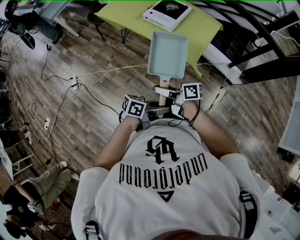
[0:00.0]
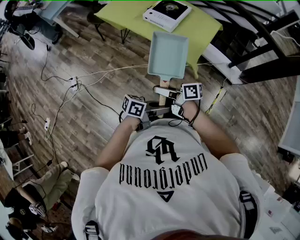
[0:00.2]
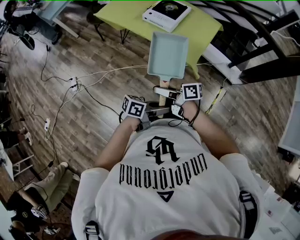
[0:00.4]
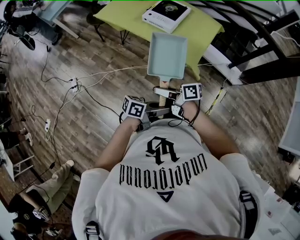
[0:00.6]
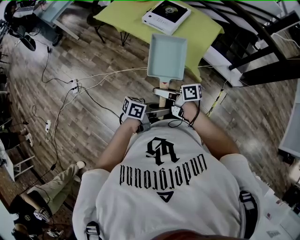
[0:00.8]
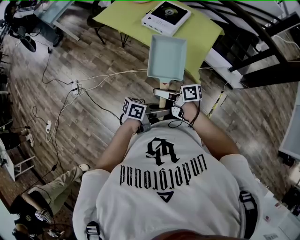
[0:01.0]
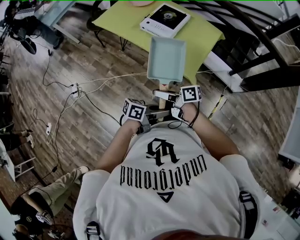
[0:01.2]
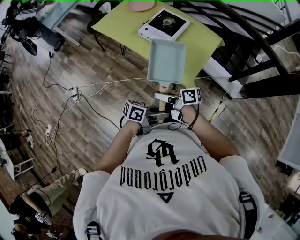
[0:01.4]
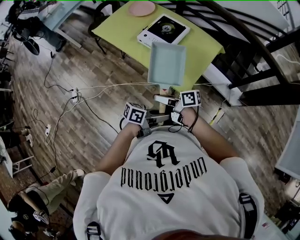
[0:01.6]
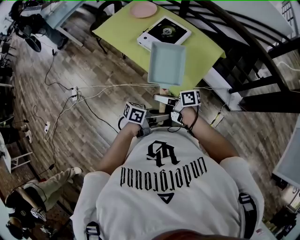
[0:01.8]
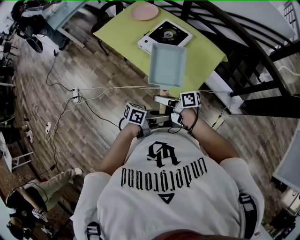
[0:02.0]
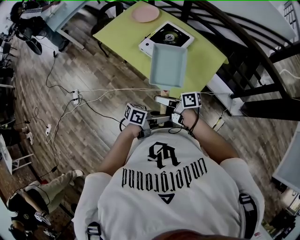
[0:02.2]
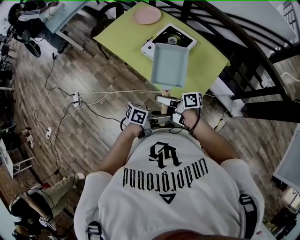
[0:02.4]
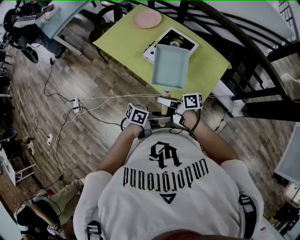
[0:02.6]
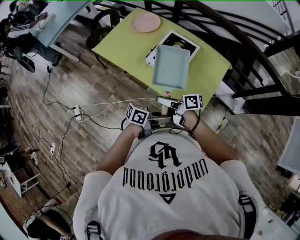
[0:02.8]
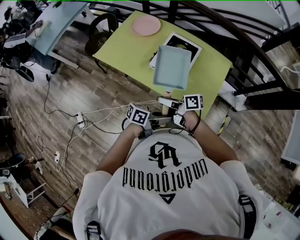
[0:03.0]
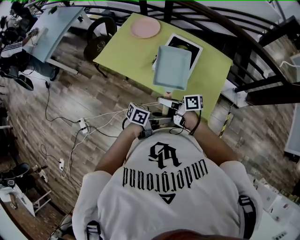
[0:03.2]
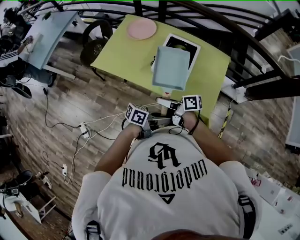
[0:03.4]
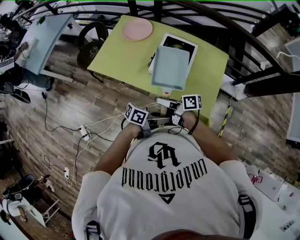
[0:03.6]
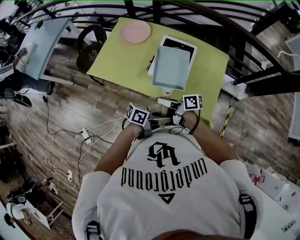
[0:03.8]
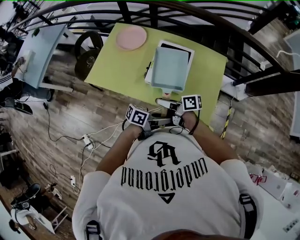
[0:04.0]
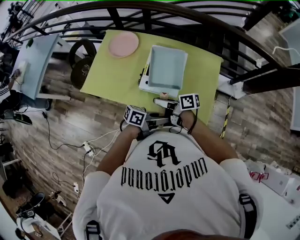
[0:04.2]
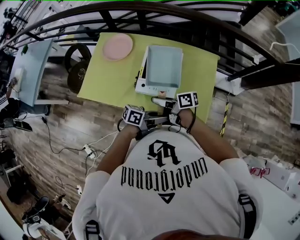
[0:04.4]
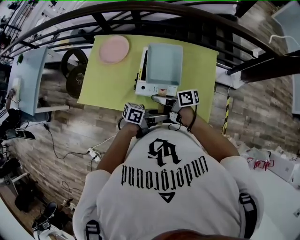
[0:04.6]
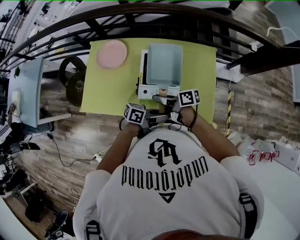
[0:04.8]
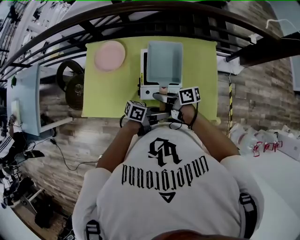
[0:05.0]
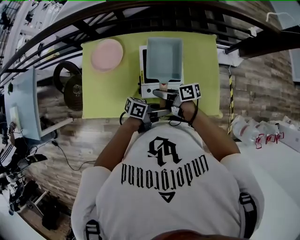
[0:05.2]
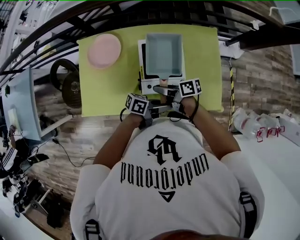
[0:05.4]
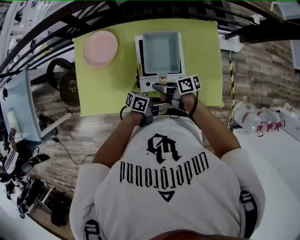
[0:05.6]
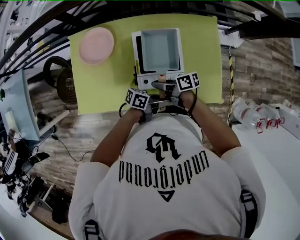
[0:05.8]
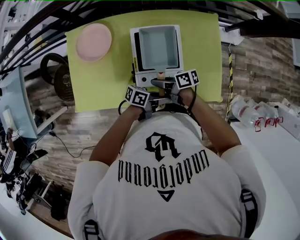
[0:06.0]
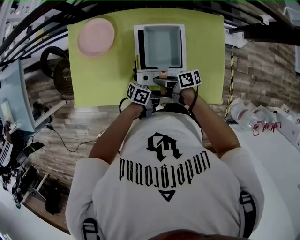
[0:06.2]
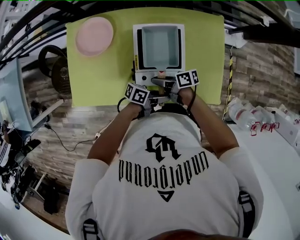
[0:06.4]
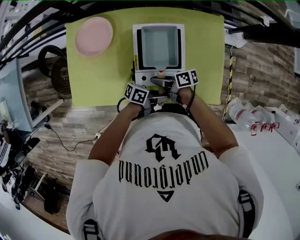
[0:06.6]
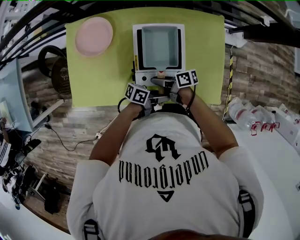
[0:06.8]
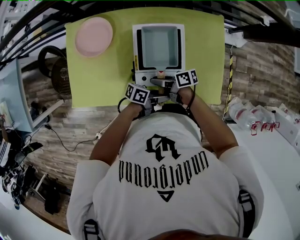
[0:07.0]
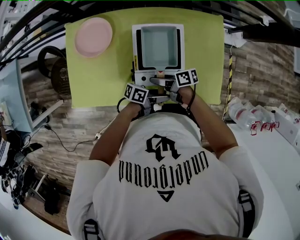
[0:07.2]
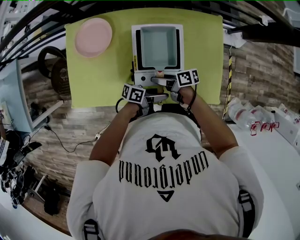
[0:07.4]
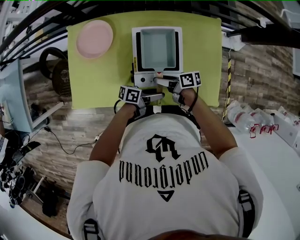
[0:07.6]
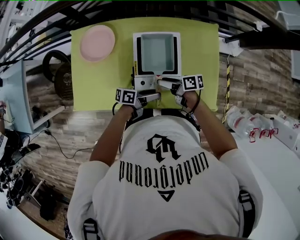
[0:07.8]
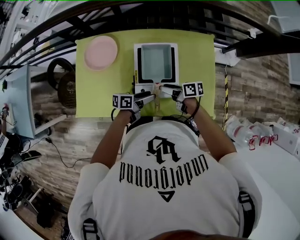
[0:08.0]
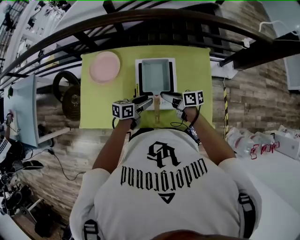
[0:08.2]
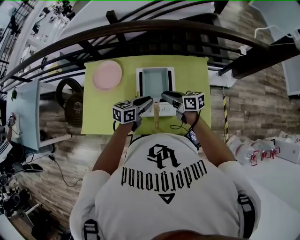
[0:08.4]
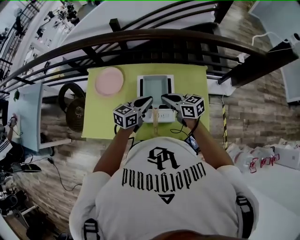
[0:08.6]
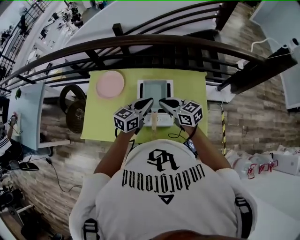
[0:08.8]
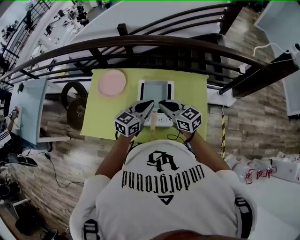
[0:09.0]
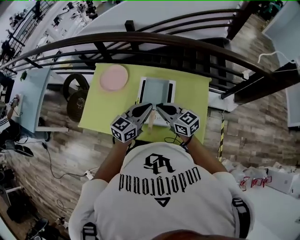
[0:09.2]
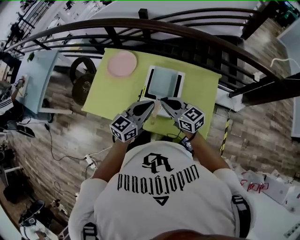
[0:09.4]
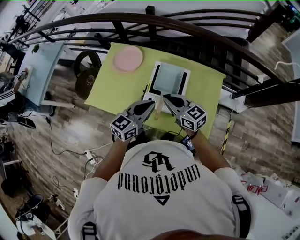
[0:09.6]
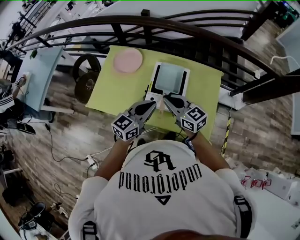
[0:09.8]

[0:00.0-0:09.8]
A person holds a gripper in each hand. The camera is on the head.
0:00.0 to 0:01.4: The left gripper ends up approximately 15 cm from where it was. Meanwhile the right gripper changes place by some 15 cm.
0:01.4 to 0:02.8: The left gripper ends up about 25 cm from where it was, while the right gripper ends up roughly 25 cm from where it was.
0:02.8 to 0:04.2: The left gripper shifts by some 15 cm; the right gripper shifts by approximately 15 cm.
0:04.2 to 0:05.6: The right gripper changes place by about 20 cm, while the left gripper ends up roughly 15 cm from where it was, and changes its angle by about 20 degrees.
0:05.6 to 0:07.0: The grippers both shift downward by roughly 5 cm.
0:07.0 to 0:08.4: The two grippers go approximately 15 cm upward. The left gripper turns by roughly 50 degrees, and opens, then closes once more. The right gripper changes its angle by roughly 30 degrees, and opens, then closes once more.
0:08.4 to 0:09.8: The right gripper goes roughly 20 cm backward, upward and to the left, and rotates about 40 degrees, while the left gripper travels backward and upward by about 20 cm, and changes its angle by about 30 degrees.

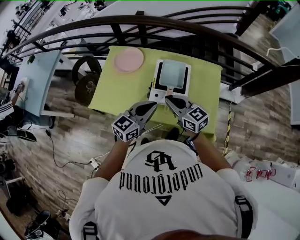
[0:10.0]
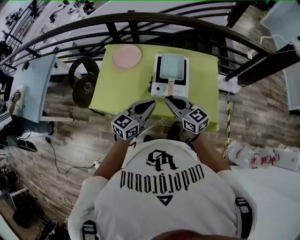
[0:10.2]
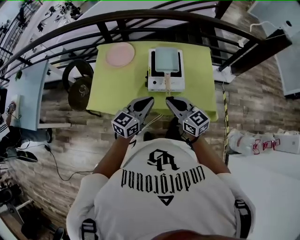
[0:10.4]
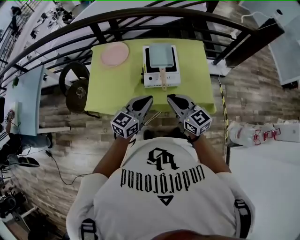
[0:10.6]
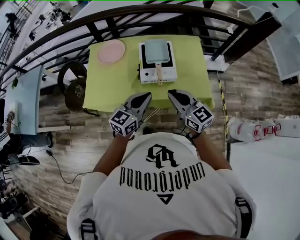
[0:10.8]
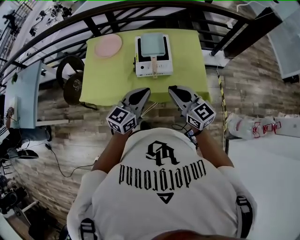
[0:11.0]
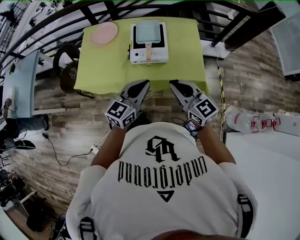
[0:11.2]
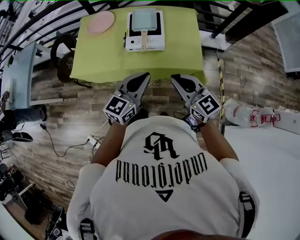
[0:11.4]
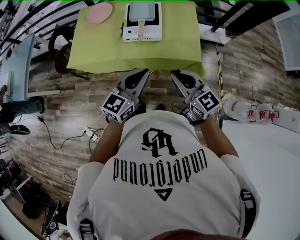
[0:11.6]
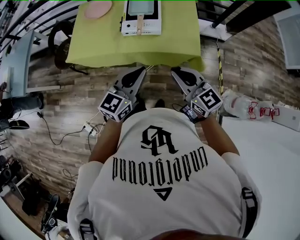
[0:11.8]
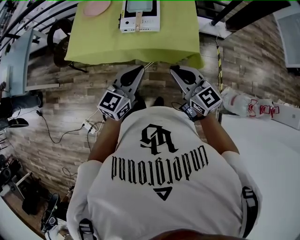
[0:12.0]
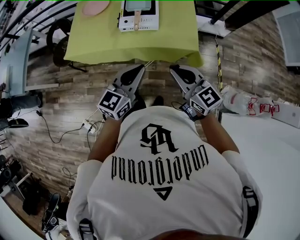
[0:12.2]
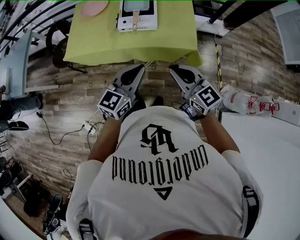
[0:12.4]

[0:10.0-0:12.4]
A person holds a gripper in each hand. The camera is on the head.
0:10.0 to 0:11.2: The left gripper moves backward, approximately 15 cm. The right gripper moves backward and to the right, approximately 25 cm.
0:11.2 to 0:12.4: Both grippers travel together backward and to the right, roughly 15 cm.

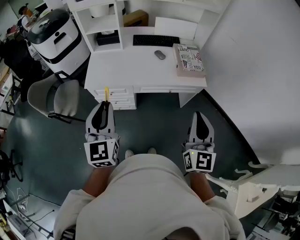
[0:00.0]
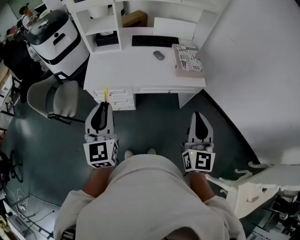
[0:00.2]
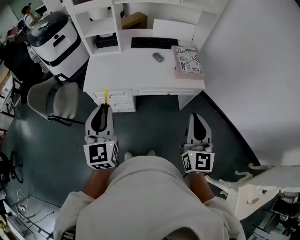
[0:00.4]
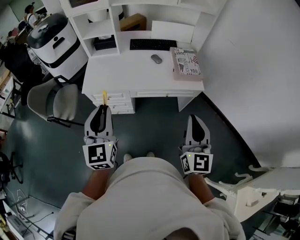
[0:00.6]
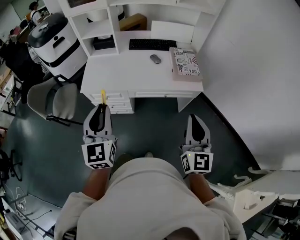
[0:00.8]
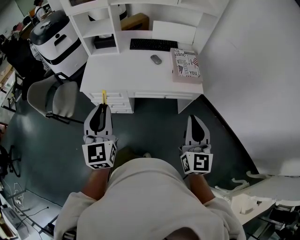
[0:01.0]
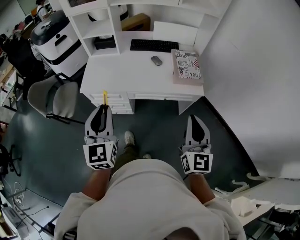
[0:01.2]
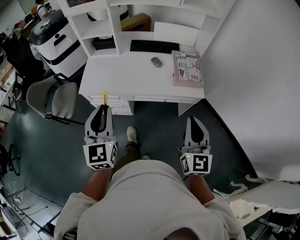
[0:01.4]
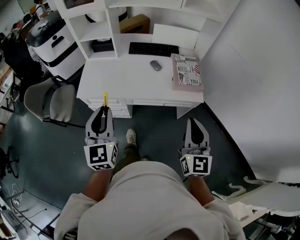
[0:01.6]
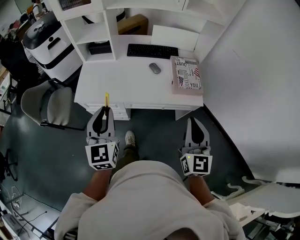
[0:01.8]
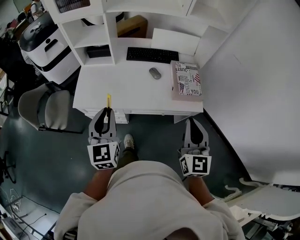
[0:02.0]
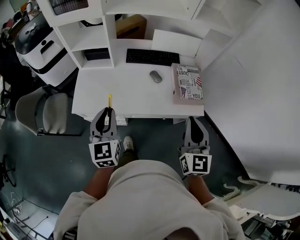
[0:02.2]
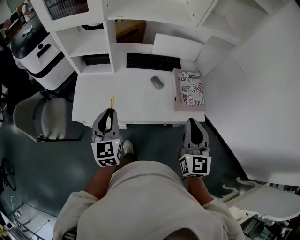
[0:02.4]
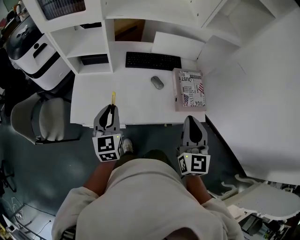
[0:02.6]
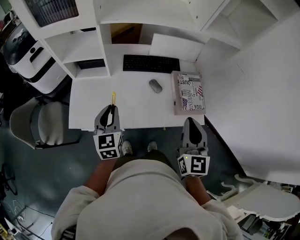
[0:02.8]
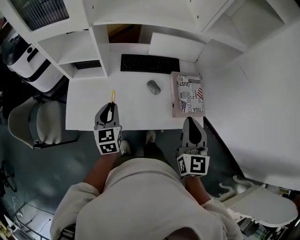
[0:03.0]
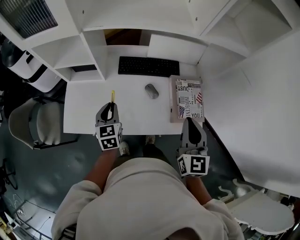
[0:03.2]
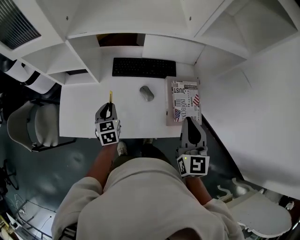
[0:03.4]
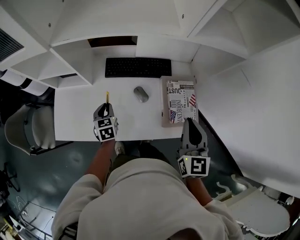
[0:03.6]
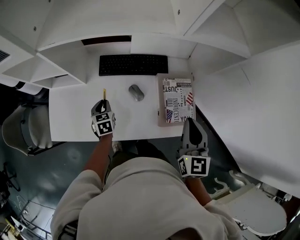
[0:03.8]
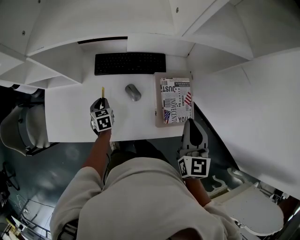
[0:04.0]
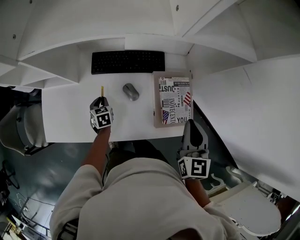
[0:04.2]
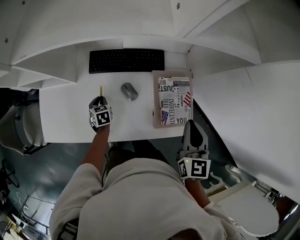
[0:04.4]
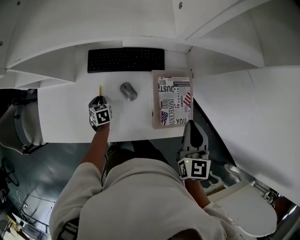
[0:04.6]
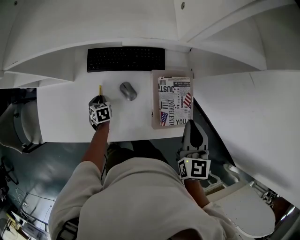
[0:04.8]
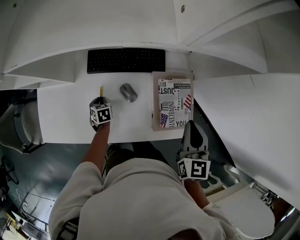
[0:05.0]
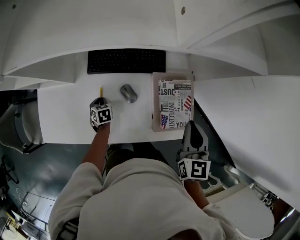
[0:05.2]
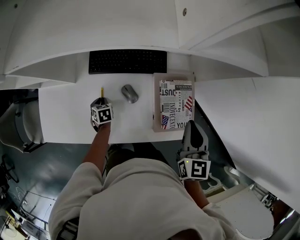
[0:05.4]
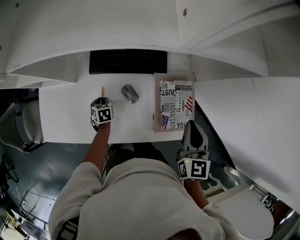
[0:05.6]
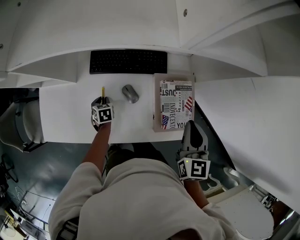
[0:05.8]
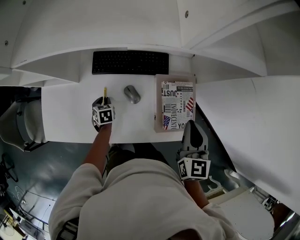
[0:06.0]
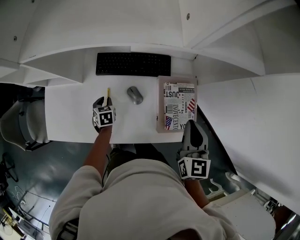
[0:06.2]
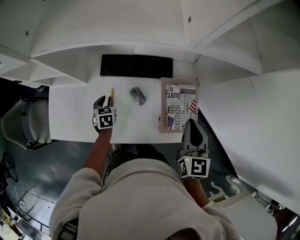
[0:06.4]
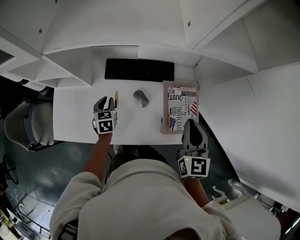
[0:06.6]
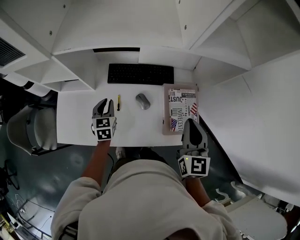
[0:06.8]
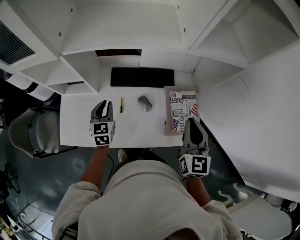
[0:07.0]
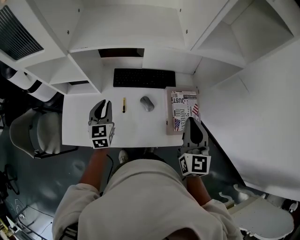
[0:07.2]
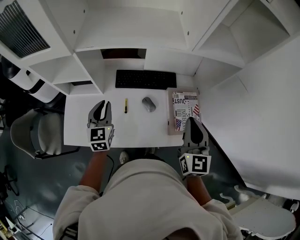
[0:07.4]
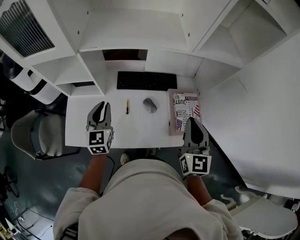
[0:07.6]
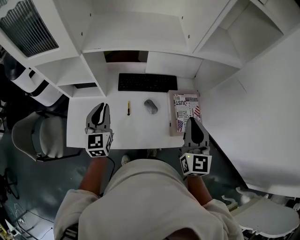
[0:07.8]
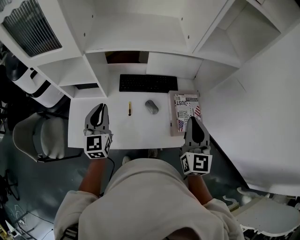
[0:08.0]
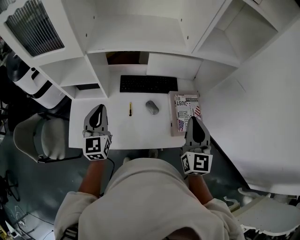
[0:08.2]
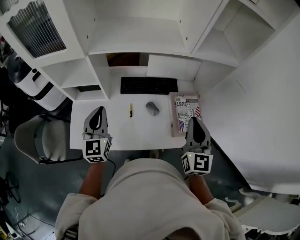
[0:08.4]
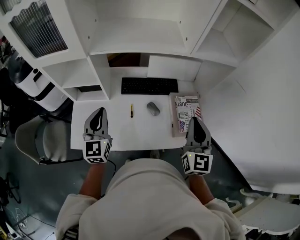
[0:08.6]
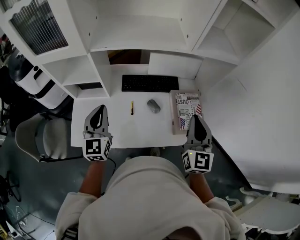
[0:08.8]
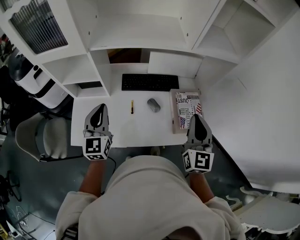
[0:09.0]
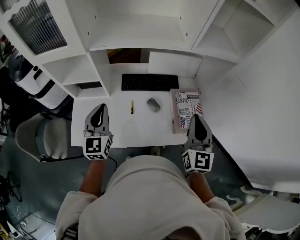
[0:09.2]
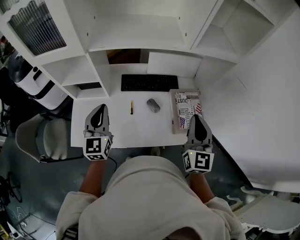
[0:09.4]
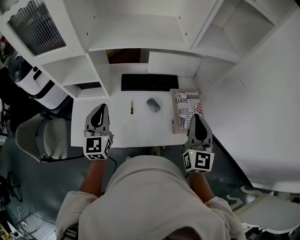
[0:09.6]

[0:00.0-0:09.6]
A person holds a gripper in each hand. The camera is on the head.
0:00.0 to 0:01.6: The grippers both shift forward and to the right by roughly 10 cm.
0:01.6 to 0:03.2: The right gripper travels forward by roughly 35 cm, while the left gripper moves forward and downward, roughly 40 cm, and swivels some 20 degrees.
0:03.2 to 0:04.8: The right gripper travels to the right, forward and downward by about 20 cm; the left gripper moves downward and forward, roughly 30 cm, and points its fingers about 30 degrees further downward.
0:04.8 to 0:06.4: The left gripper travels upward by roughly 10 cm.
0:06.4 to 0:08.0: The left gripper goes roughly 30 cm upward, and tips its fingers upward by about 40 degrees; the right gripper is displaced upward, to the left and backward by some 15 cm.
0:08.0 to 0:09.6: The grippers move only a little.

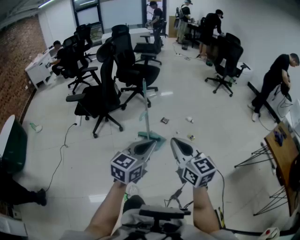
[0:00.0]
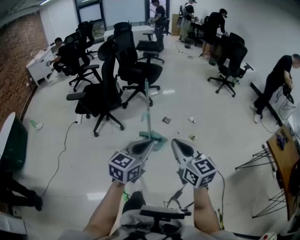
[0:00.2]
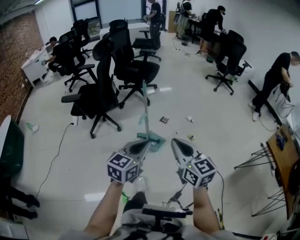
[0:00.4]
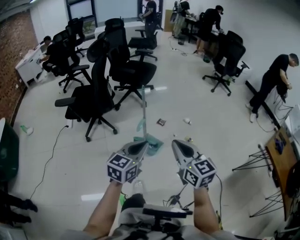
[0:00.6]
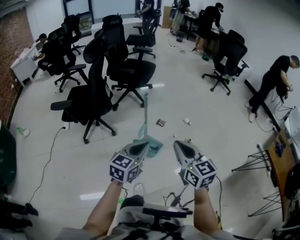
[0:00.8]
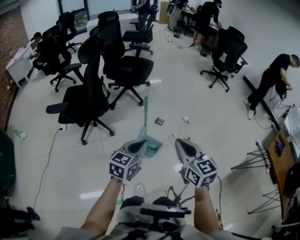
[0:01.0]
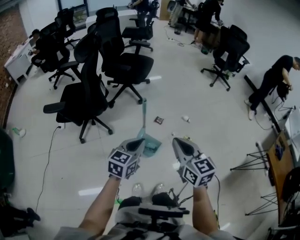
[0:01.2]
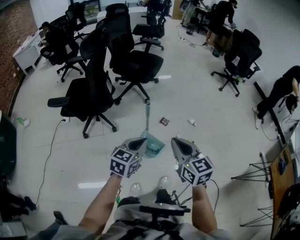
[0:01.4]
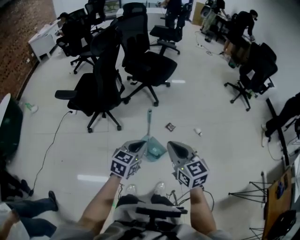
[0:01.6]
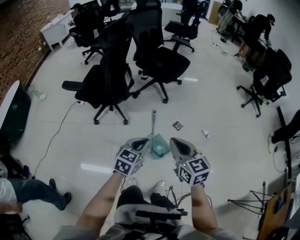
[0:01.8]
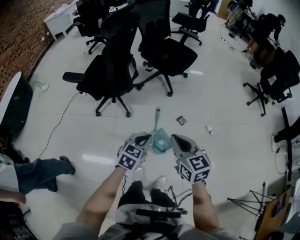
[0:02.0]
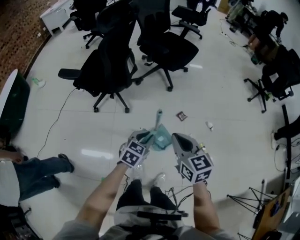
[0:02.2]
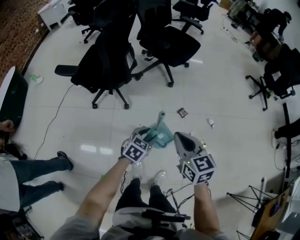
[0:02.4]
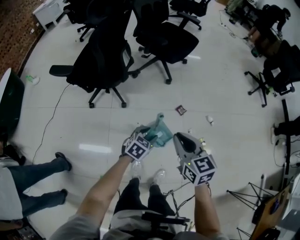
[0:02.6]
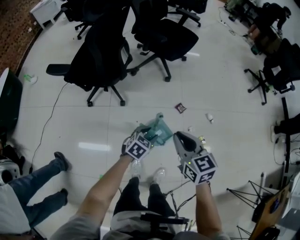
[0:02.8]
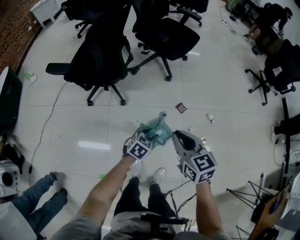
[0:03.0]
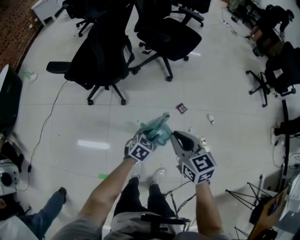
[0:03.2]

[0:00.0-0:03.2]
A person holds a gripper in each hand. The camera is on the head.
0:00.0 to 0:01.6: The two grippers go approximately 35 cm forward.
0:01.6 to 0:03.2: The right gripper goes approximately 15 cm forward and downward, while the left gripper heads downward and forward, covering some 25 cm, and opens up.
